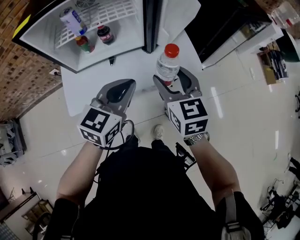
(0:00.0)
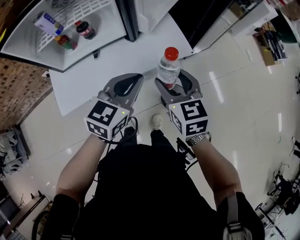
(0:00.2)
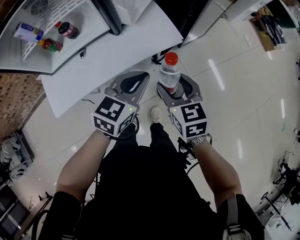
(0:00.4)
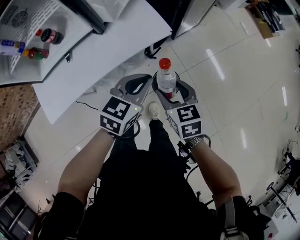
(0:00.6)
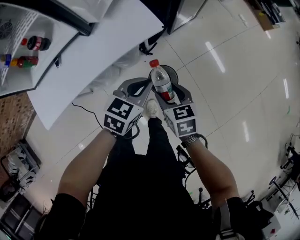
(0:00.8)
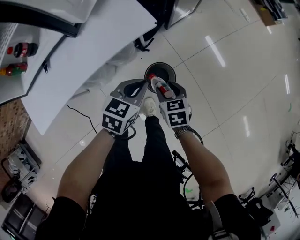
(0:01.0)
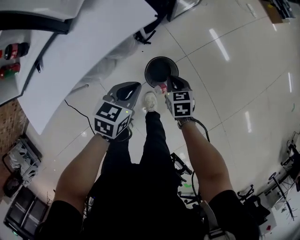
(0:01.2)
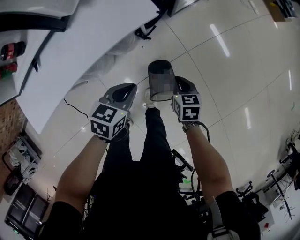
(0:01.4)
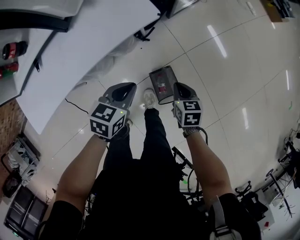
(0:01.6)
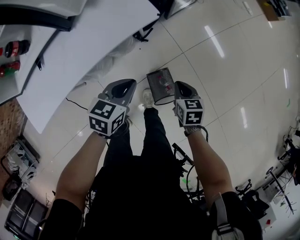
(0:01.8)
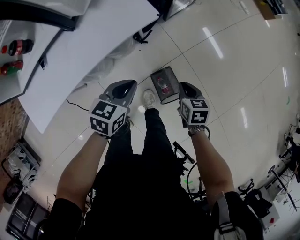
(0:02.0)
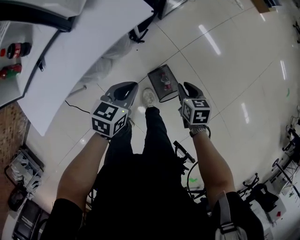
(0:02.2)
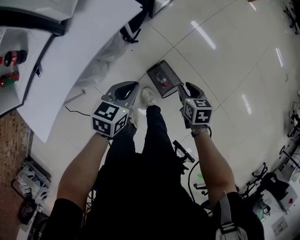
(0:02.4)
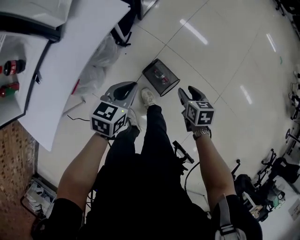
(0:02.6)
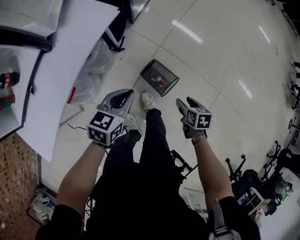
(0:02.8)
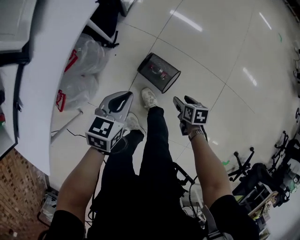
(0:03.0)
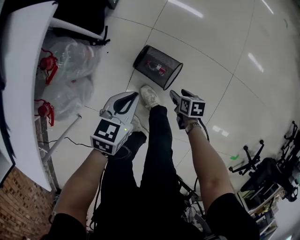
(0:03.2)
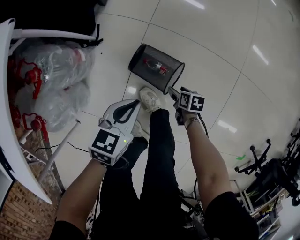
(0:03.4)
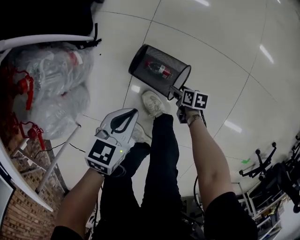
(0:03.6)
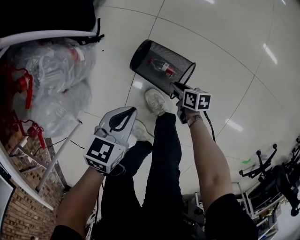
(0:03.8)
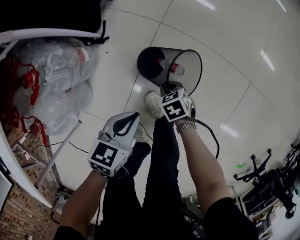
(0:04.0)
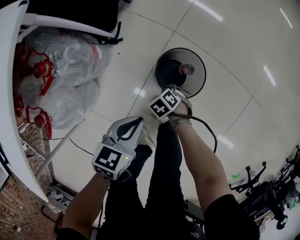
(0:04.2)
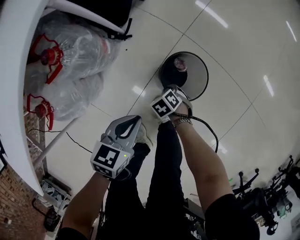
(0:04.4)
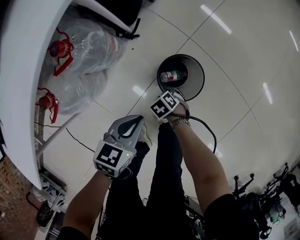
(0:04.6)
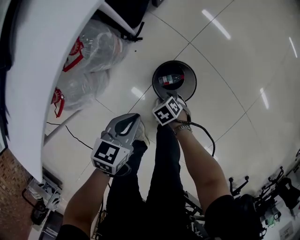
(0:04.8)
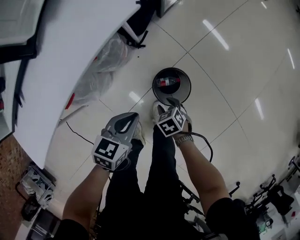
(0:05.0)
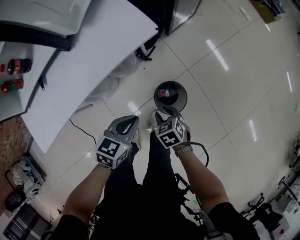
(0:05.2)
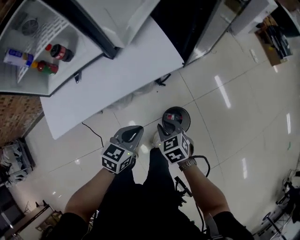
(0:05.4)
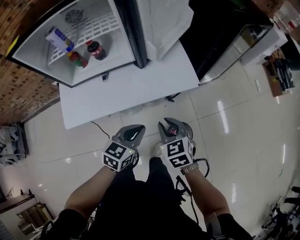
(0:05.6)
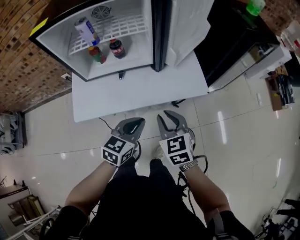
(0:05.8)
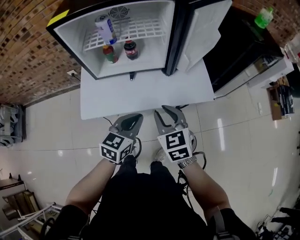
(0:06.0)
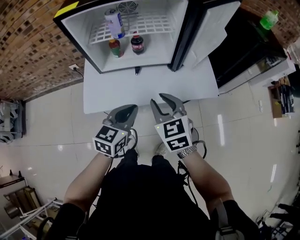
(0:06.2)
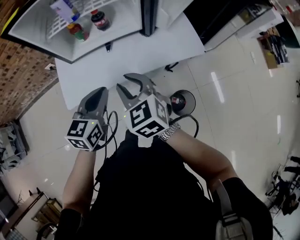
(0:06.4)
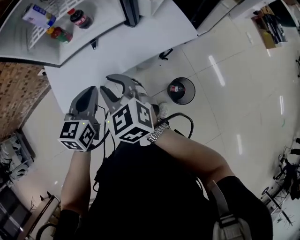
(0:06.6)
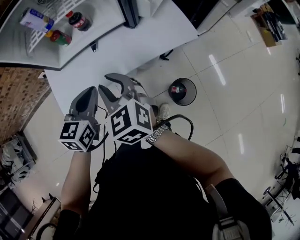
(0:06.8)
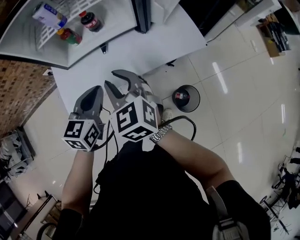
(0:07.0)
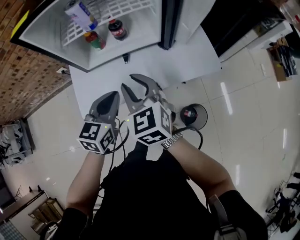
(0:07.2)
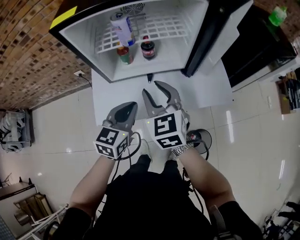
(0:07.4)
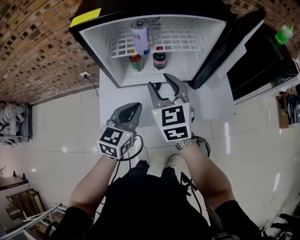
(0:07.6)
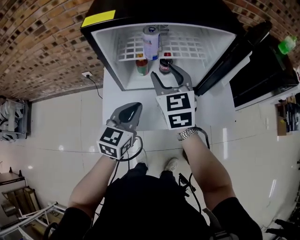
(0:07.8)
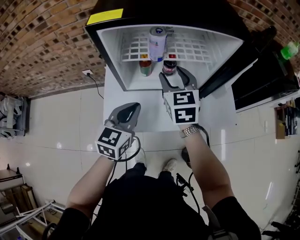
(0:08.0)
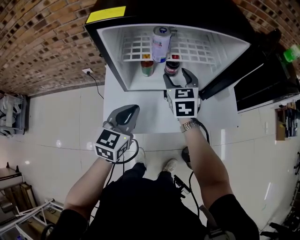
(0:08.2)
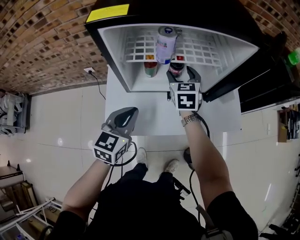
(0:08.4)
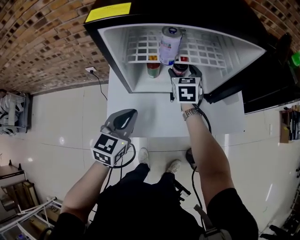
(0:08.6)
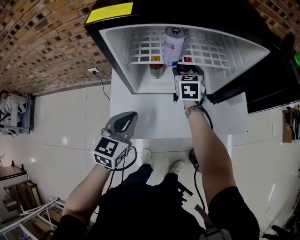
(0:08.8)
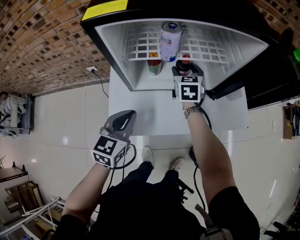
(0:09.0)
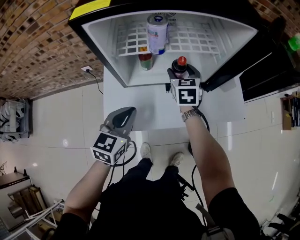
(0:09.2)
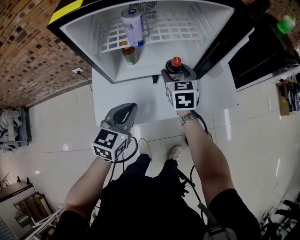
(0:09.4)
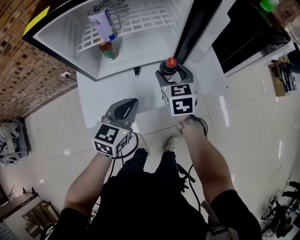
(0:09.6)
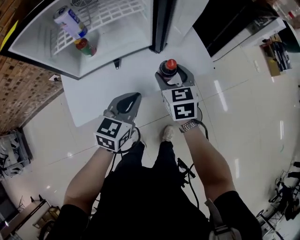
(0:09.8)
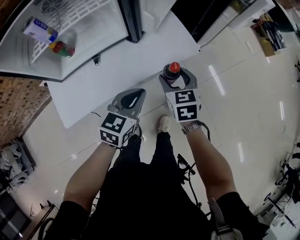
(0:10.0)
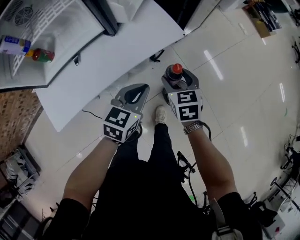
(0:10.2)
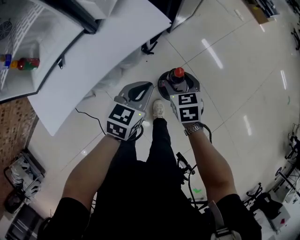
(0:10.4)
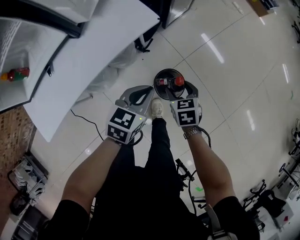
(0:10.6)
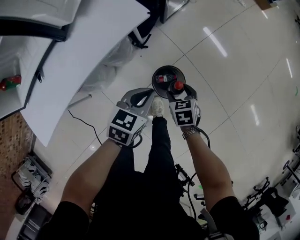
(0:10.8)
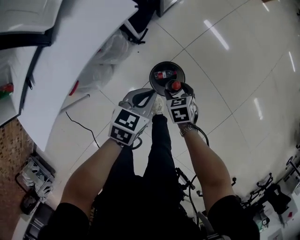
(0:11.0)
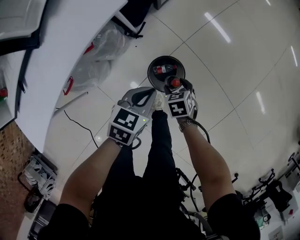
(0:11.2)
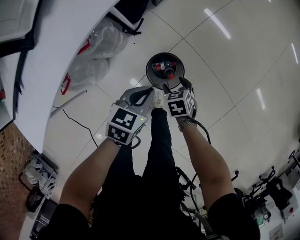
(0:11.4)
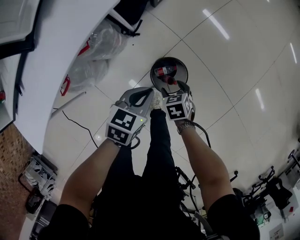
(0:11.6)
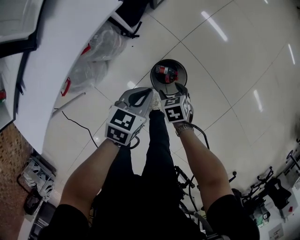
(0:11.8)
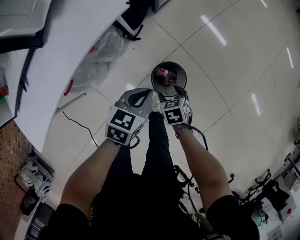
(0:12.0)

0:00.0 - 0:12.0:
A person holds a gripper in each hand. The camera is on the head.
0:00.0 - 0:01.6: The grippers both shift downward and to the right by approximately 40 cm. The right gripper tips its fingers downward by some 30 degrees, and closes. The left gripper turns by approximately 40 degrees.
0:01.6 - 0:03.0: The right gripper travels backward, to the right and downward by roughly 25 cm, turns by about 40 degrees, and opens its fingers, while the left gripper moves backward and to the right, some 10 cm, and rotates about 30 degrees.
0:03.0 - 0:04.4: The grippers both shift downward by approximately 20 cm. The right gripper rotates around the line of its fingers by some 50 degrees, counterclockwise from behind, and closes.
0:04.4 - 0:06.0: The right gripper shifts some 70 cm upward, and angles its fingers upward, by some 50 degrees. The left gripper is displaced upward by approximately 40 cm, and changes its angle by approximately 50 degrees.
0:06.0 - 0:07.6: The right gripper shifts about 20 cm forward, to the left and upward, while the left gripper moves to the left and forward, some 15 cm.
0:07.6 - 0:09.0: The right gripper heads forward and downward, covering approximately 25 cm. The left gripper moves to the left, about 10 cm.
0:09.0 - 0:10.4: Both grippers are carried roughly 50 cm. The right gripper swivels roughly 30 degrees; the left gripper swivels about 40 degrees.
0:10.4 - 0:12.0: Both grippers move downward and to the right, roughly 20 cm. The right gripper turns by roughly 20 degrees.

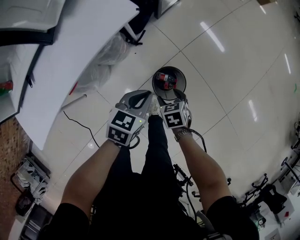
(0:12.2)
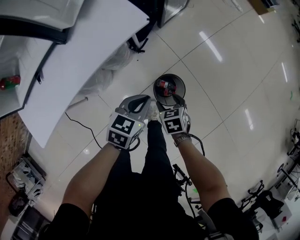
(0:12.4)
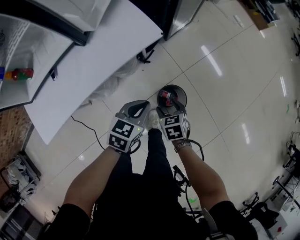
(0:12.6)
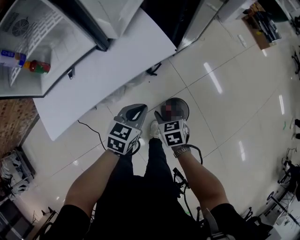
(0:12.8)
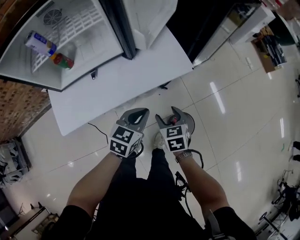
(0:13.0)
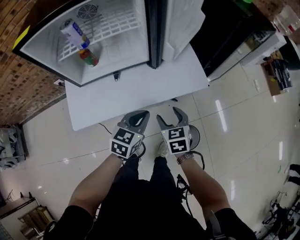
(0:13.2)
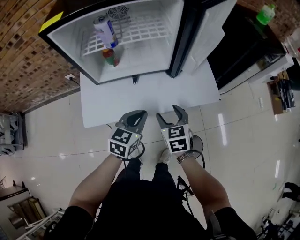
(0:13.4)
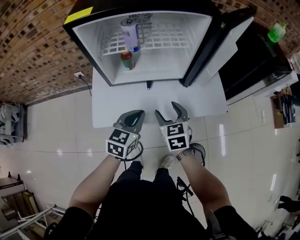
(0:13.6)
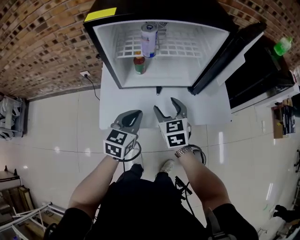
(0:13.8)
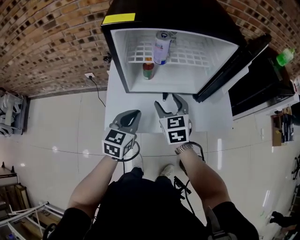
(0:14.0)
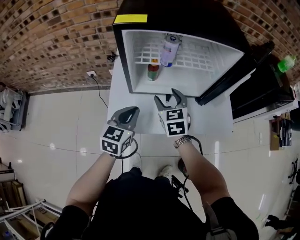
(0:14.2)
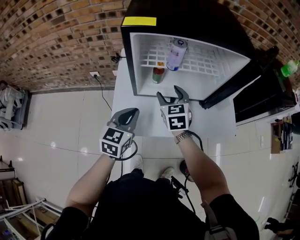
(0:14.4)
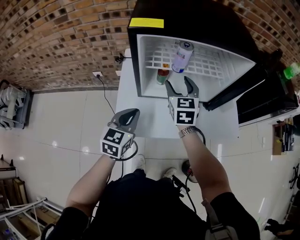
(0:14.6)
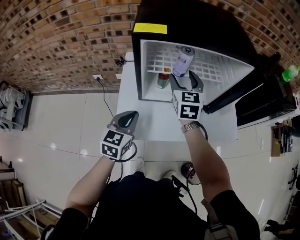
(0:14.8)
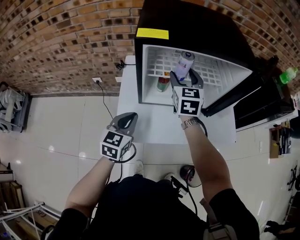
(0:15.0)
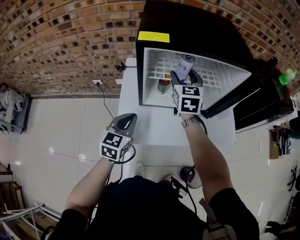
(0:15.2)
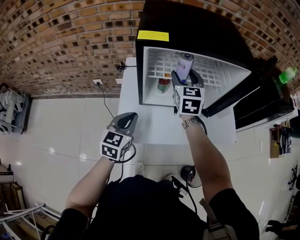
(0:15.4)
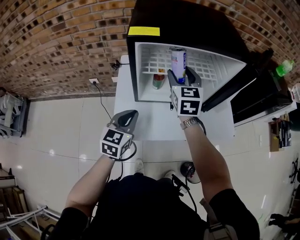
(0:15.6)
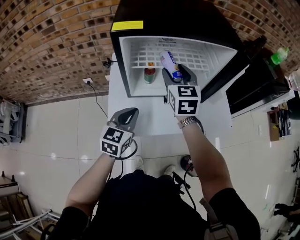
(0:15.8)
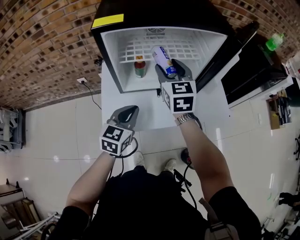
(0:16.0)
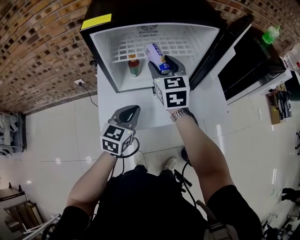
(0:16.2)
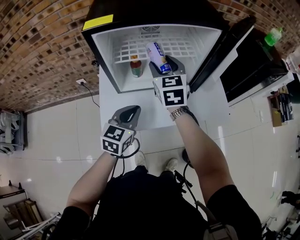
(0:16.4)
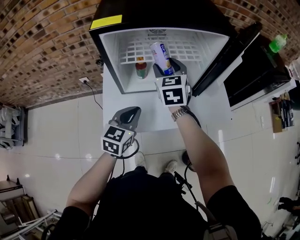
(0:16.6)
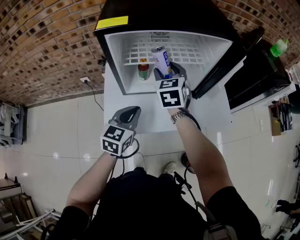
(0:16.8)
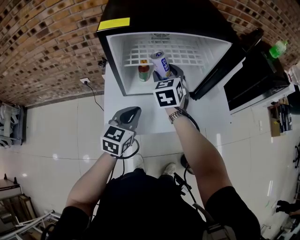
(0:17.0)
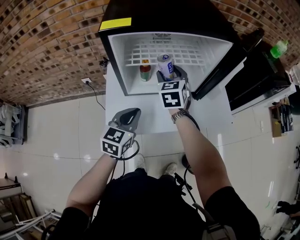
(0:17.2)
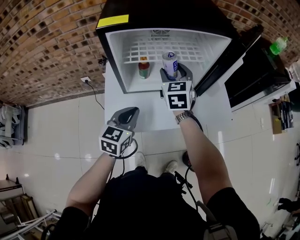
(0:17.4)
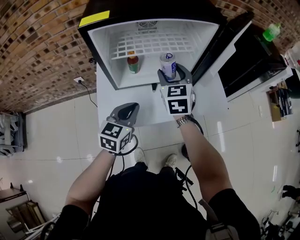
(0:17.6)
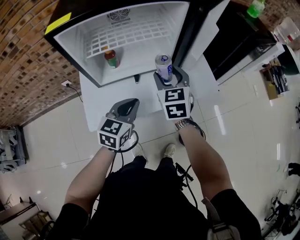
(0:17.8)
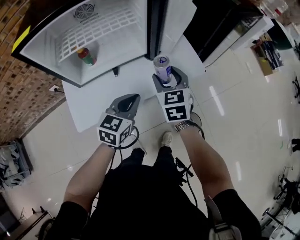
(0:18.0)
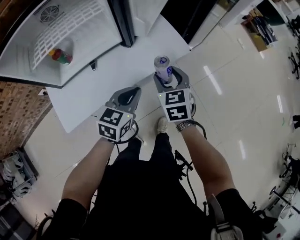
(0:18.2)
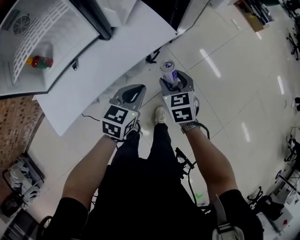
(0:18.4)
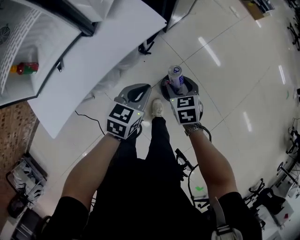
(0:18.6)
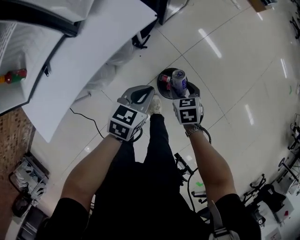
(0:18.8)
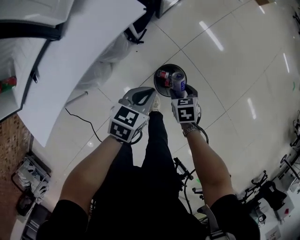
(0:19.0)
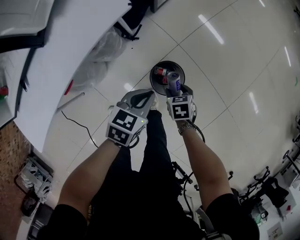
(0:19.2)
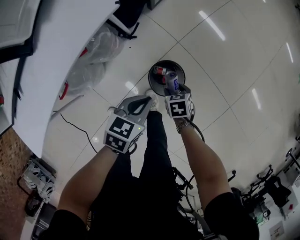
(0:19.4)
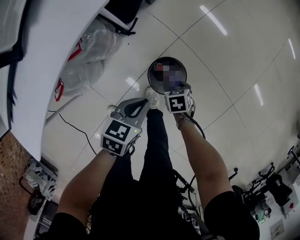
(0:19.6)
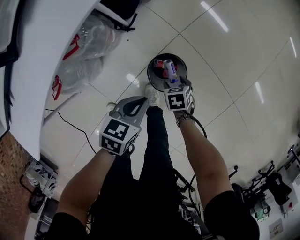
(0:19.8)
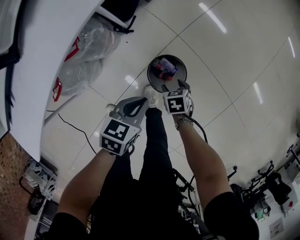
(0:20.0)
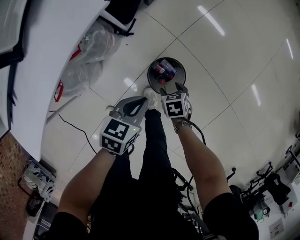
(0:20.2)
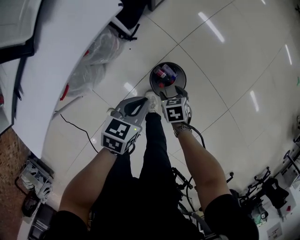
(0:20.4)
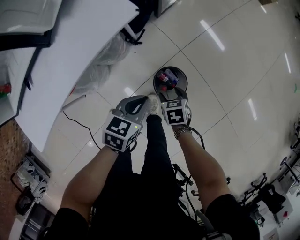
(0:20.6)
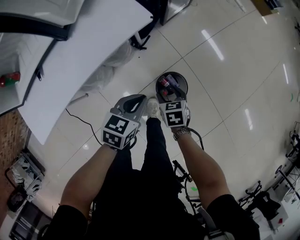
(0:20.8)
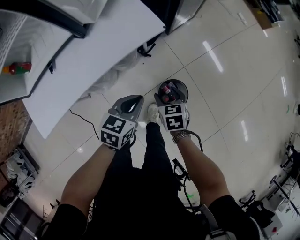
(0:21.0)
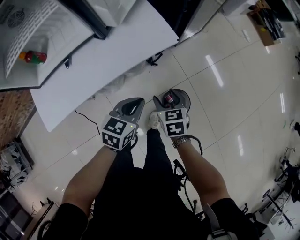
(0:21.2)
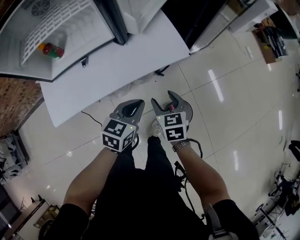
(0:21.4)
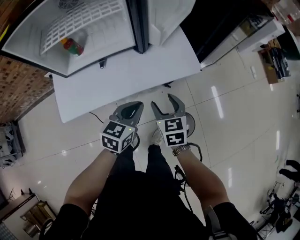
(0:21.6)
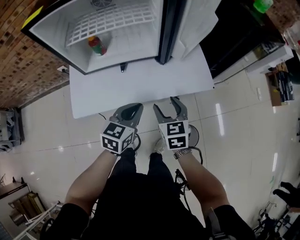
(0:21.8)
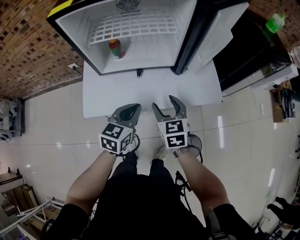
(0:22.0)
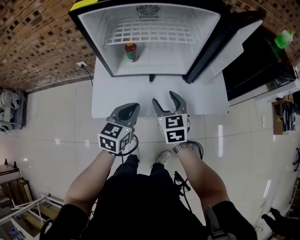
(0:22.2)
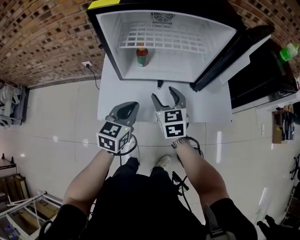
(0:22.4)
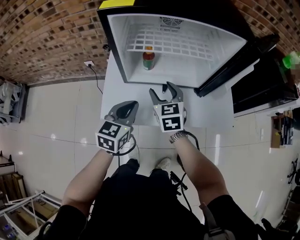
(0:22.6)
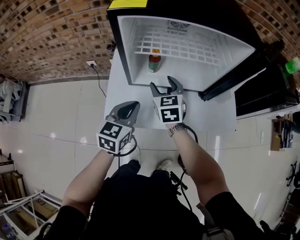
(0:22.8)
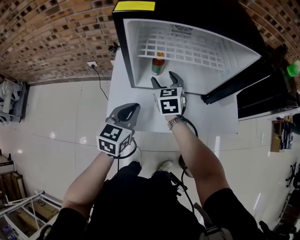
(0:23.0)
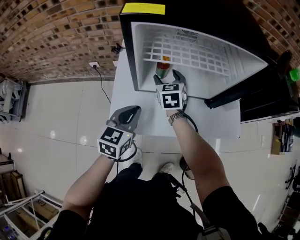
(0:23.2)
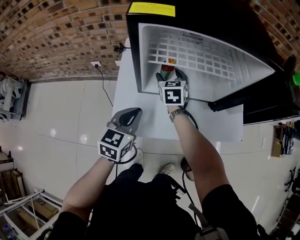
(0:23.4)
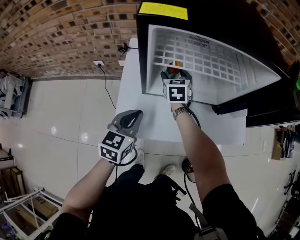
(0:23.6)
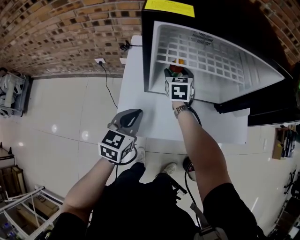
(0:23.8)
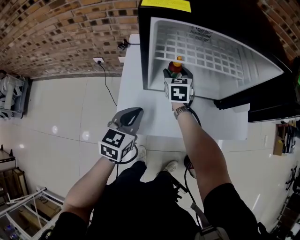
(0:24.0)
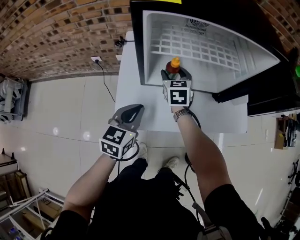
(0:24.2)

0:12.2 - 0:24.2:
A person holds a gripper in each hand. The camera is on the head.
0:12.2 - 0:13.8: The pair of grippers is taken about 50 cm. The right gripper angles its fingers upward, by roughly 30 degrees, while the left gripper changes its angle by approximately 50 degrees.
0:13.8 - 0:15.2: The left gripper heads to the left, covering roughly 15 cm; the right gripper shifts roughly 25 cm forward, upward and to the left.
0:15.2 - 0:16.6: The right gripper moves roughly 5 cm. The left gripper heads to the right, covering roughly 10 cm.
0:16.6 - 0:18.2: The right gripper changes place by approximately 40 cm, and changes its angle by approximately 30 degrees, while the left gripper changes place by roughly 25 cm, and swivels some 30 degrees.
0:18.2 - 0:19.8: Both grippers travel together downward and to the right, roughly 50 cm. The right gripper points its fingers approximately 40 degrees further downward, while the left gripper turns by roughly 30 degrees.
0:19.8 - 0:21.2: The left gripper moves upward and to the left, some 25 cm, and changes its angle by some 30 degrees, while the right gripper goes approximately 35 cm upward and to the left, and rotates roughly 30 degrees.
0:21.2 - 0:22.6: The left gripper shifts by some 40 cm, and rotates about 40 degrees. Meanwhile the right gripper changes place by roughly 50 cm, and turns by about 40 degrees.
0:22.6 - 0:24.2: The left gripper moves to the left, approximately 5 cm; the right gripper moves forward, to the left and downward, roughly 15 cm.
